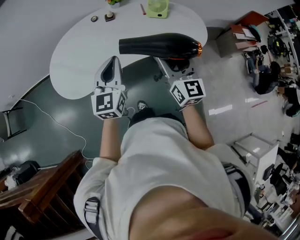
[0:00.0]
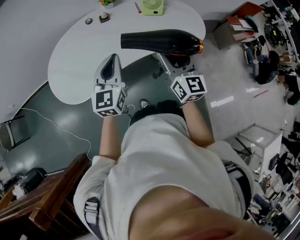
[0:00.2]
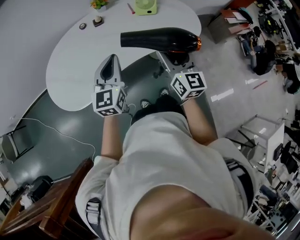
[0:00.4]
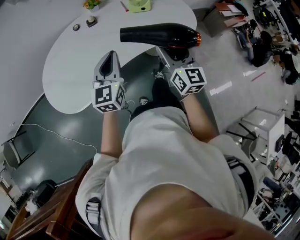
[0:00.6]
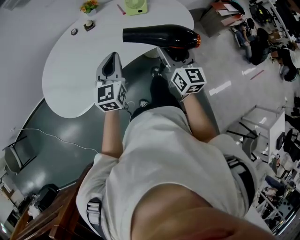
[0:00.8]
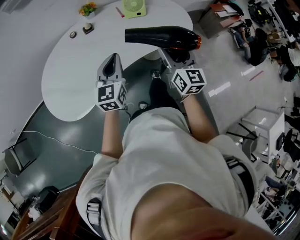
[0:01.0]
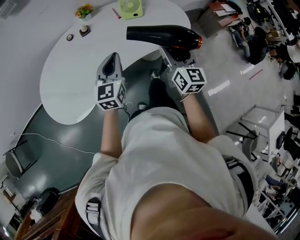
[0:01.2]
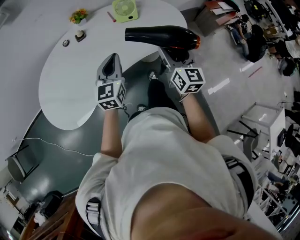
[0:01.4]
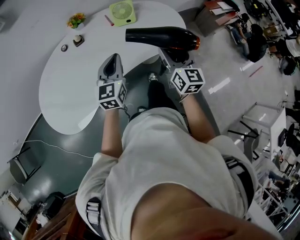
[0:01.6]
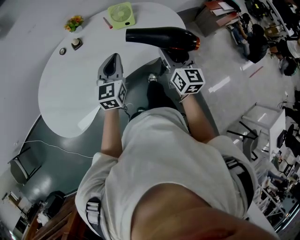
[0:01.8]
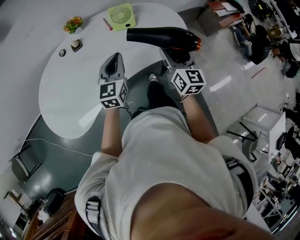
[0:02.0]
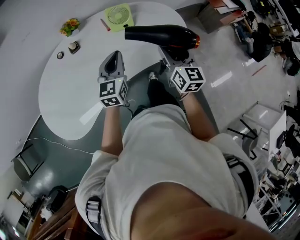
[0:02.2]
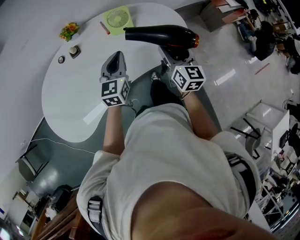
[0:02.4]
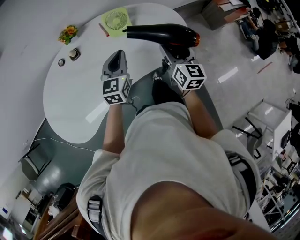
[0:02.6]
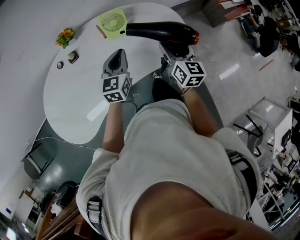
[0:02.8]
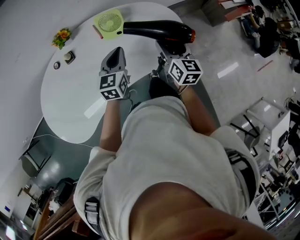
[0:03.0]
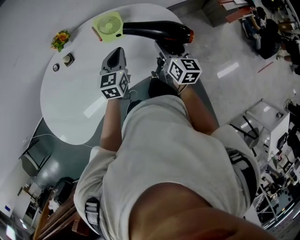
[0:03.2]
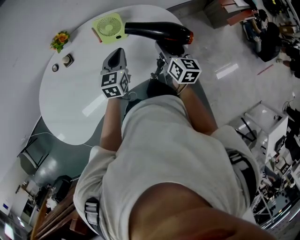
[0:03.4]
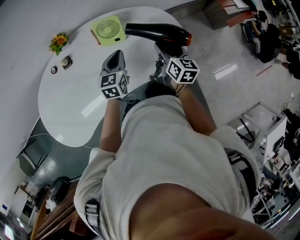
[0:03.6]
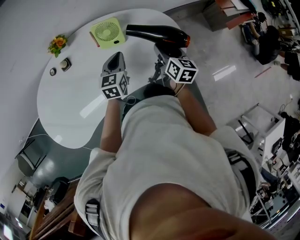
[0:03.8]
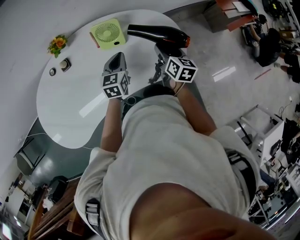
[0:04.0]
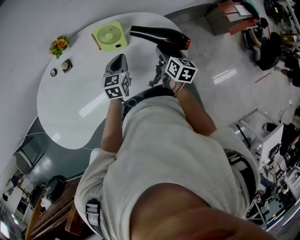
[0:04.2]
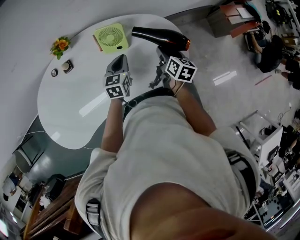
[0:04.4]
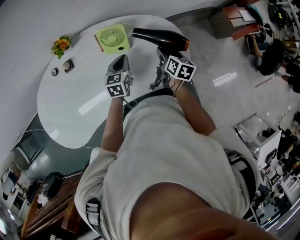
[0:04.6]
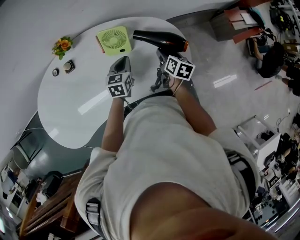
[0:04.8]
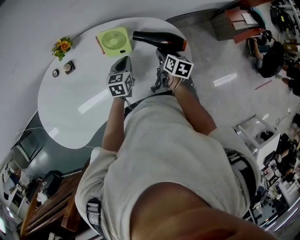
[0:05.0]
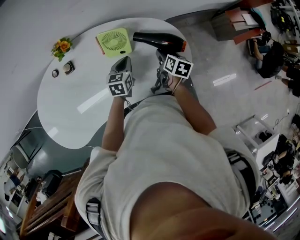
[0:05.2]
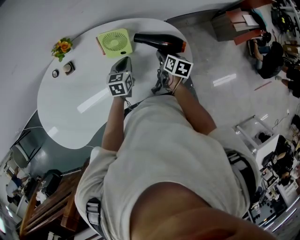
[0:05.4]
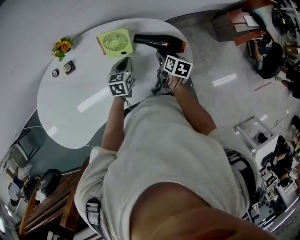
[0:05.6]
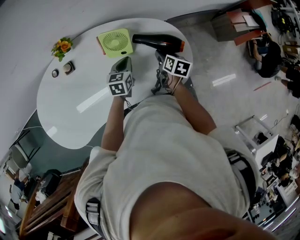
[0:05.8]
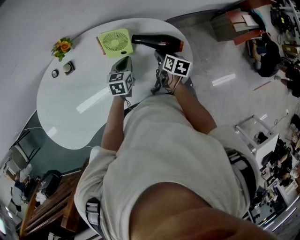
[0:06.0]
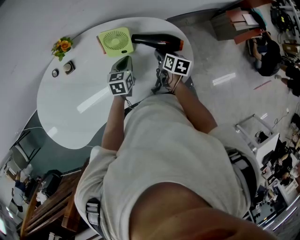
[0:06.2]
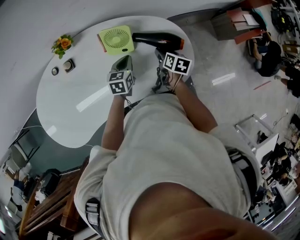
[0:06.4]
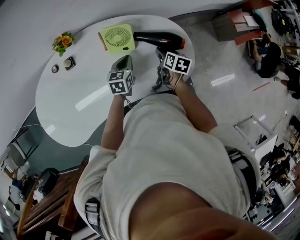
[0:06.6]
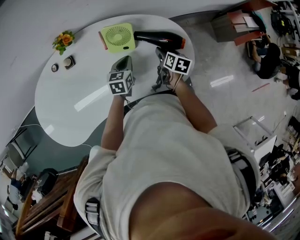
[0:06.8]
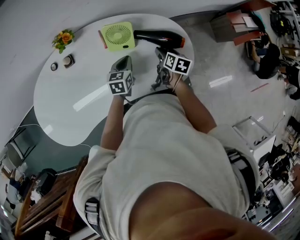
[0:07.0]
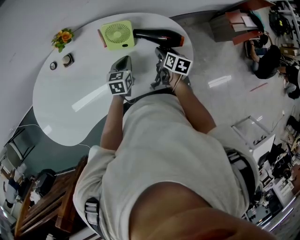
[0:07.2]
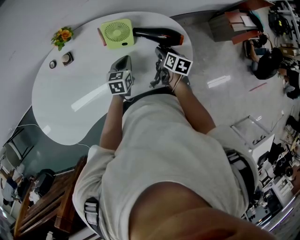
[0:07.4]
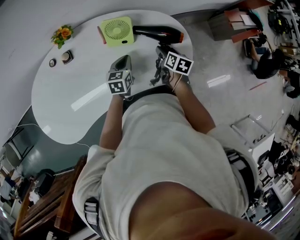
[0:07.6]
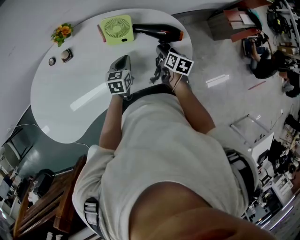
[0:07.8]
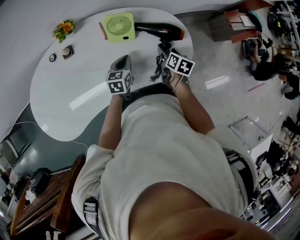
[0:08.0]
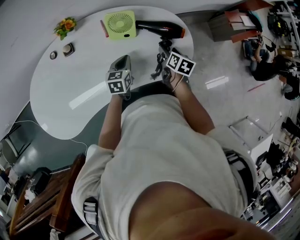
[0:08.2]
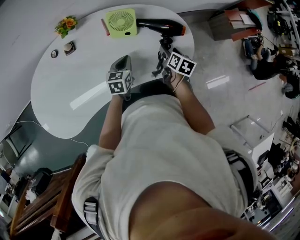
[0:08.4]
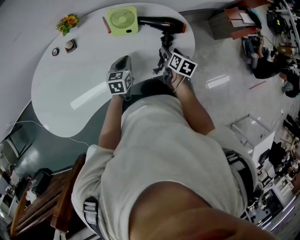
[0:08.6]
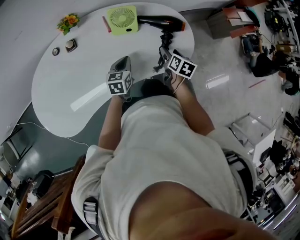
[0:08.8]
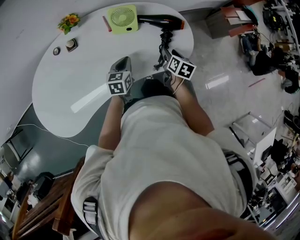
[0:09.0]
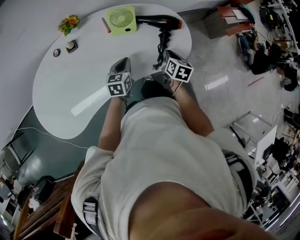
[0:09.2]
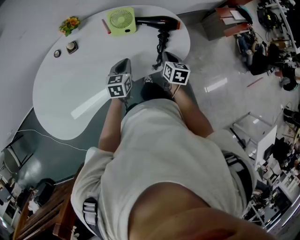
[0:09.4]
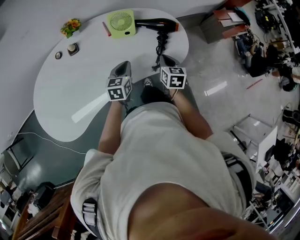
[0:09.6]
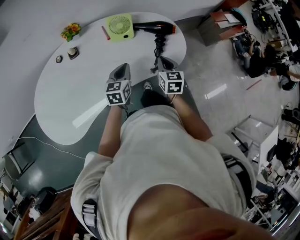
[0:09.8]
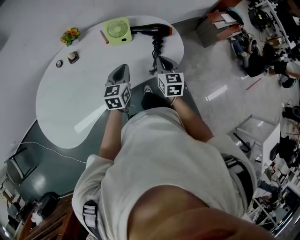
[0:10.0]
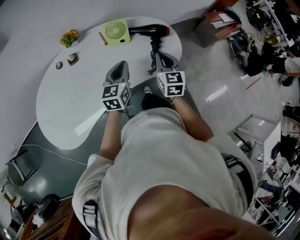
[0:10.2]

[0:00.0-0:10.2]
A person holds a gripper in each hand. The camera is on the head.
0:00.0 to 0:01.4: The left gripper is displaced forward, downward and to the right by some 15 cm, while the right gripper travels to the right, forward and downward by some 15 cm, and changes its angle by approximately 20 degrees.
0:01.4 to 0:03.0: The left gripper is displaced forward and to the right by about 25 cm; the right gripper moves forward, roughly 20 cm.
0:03.0 to 0:04.4: The grippers both shift downward and forward by about 15 cm. The right gripper rotates some 20 degrees.
0:04.4 to 0:05.8: The right gripper is displaced downward by about 5 cm. The left gripper moves roughly 5 cm.
0:05.8 to 0:07.2: There are only small adjustments of the grippers.
0:07.2 to 0:08.8: Both grippers move backward, about 10 cm.
0:08.8 to 0:10.2: The left gripper shifts about 15 cm upward; the right gripper moves upward and backward, roughly 20 cm, turns by approximately 40 degrees, and closes its fingers.

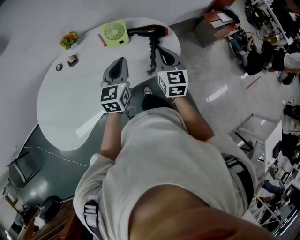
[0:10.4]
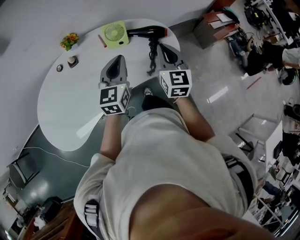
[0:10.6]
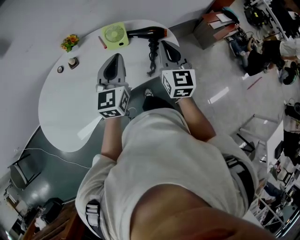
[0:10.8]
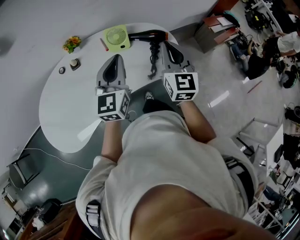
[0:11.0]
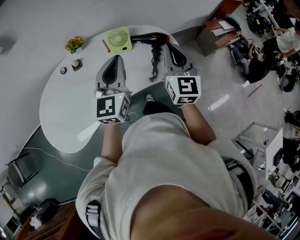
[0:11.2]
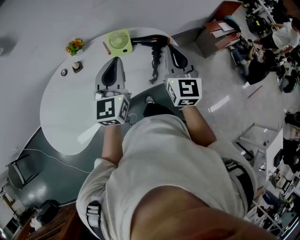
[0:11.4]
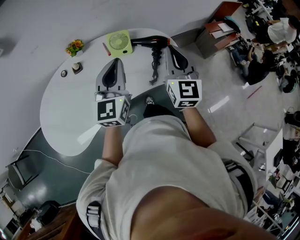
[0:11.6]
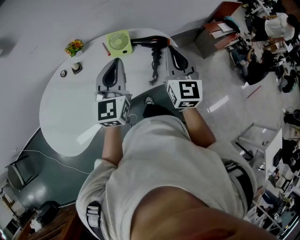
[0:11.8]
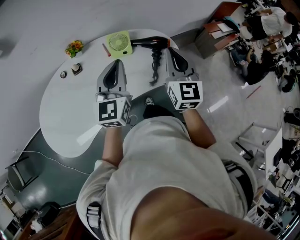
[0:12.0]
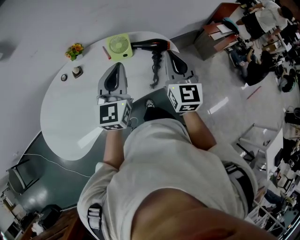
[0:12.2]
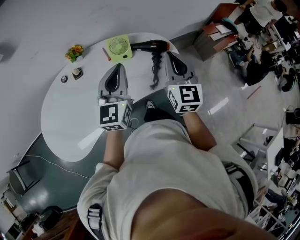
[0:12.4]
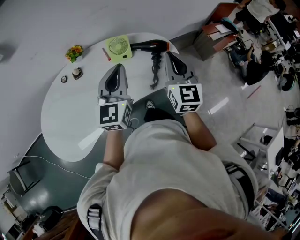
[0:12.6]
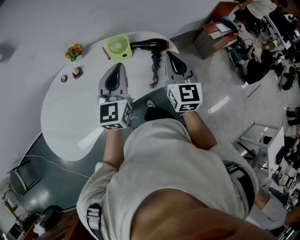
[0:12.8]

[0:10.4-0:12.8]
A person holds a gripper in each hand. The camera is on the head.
0:10.4 to 0:11.6: The grippers both shift upward by some 10 cm.
0:11.6 to 0:12.8: The grippers move only a little.

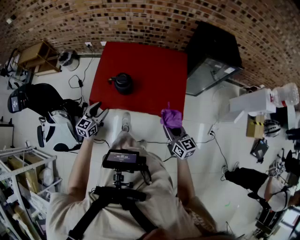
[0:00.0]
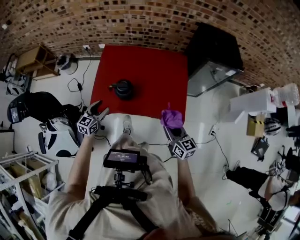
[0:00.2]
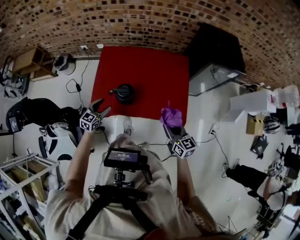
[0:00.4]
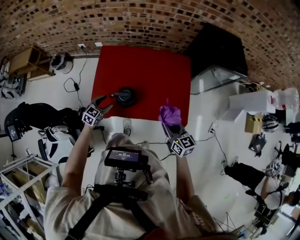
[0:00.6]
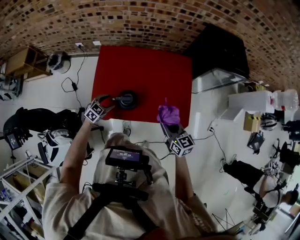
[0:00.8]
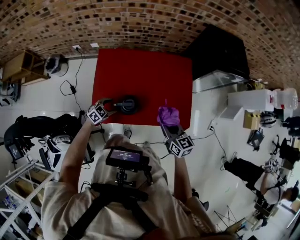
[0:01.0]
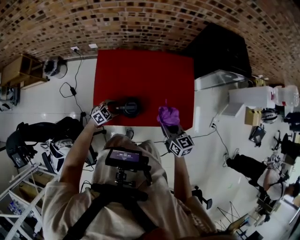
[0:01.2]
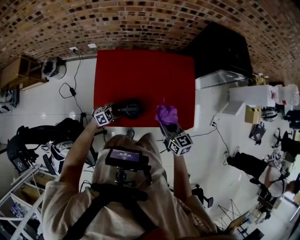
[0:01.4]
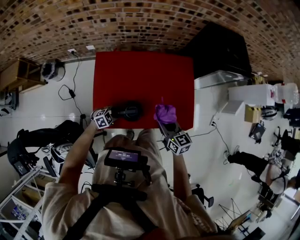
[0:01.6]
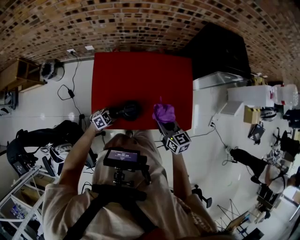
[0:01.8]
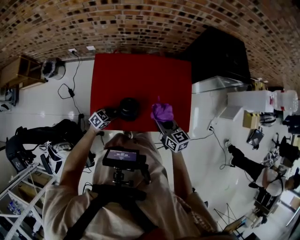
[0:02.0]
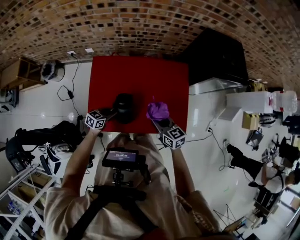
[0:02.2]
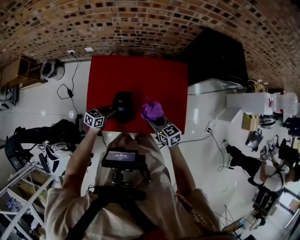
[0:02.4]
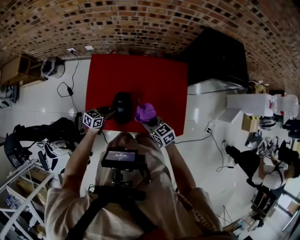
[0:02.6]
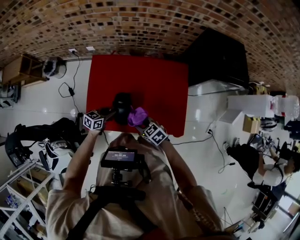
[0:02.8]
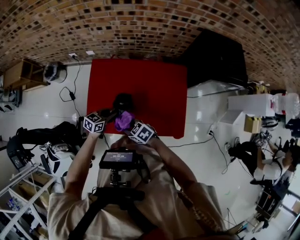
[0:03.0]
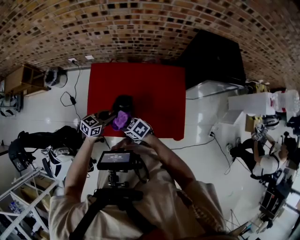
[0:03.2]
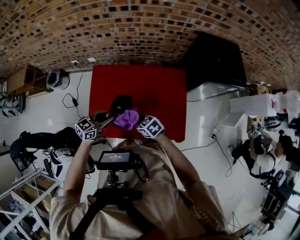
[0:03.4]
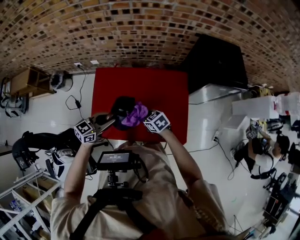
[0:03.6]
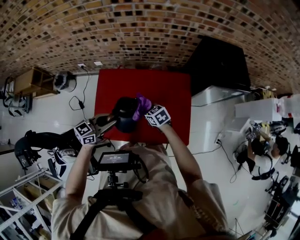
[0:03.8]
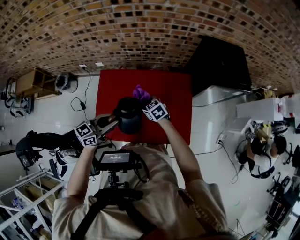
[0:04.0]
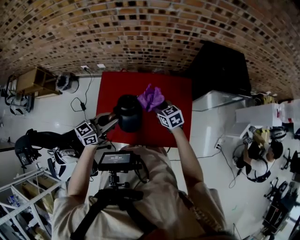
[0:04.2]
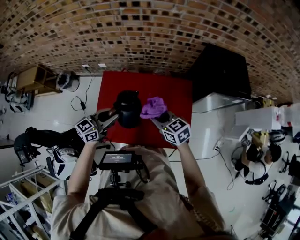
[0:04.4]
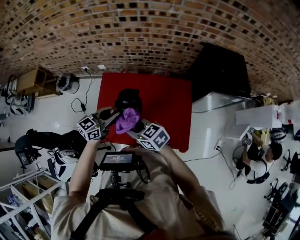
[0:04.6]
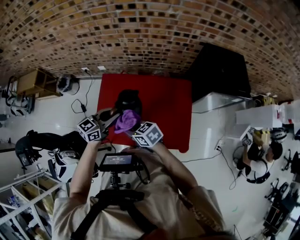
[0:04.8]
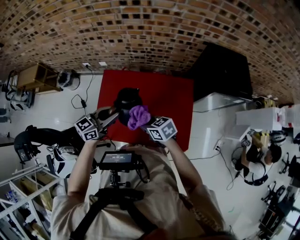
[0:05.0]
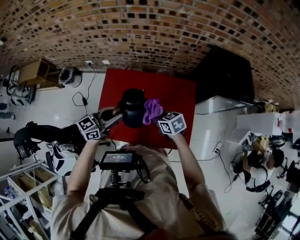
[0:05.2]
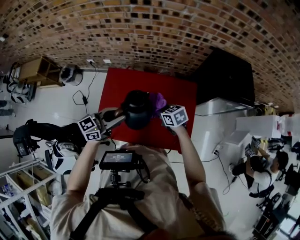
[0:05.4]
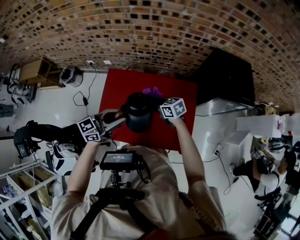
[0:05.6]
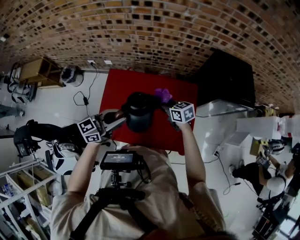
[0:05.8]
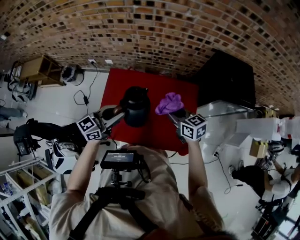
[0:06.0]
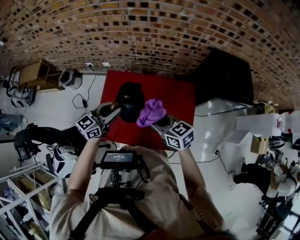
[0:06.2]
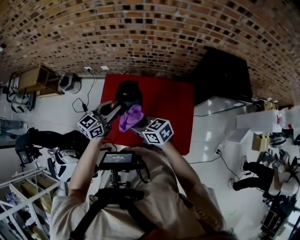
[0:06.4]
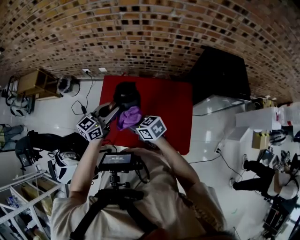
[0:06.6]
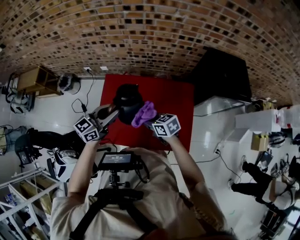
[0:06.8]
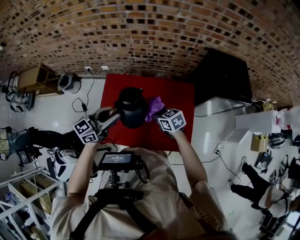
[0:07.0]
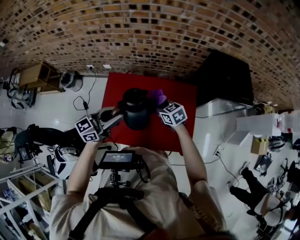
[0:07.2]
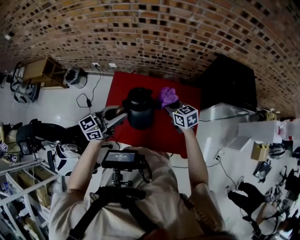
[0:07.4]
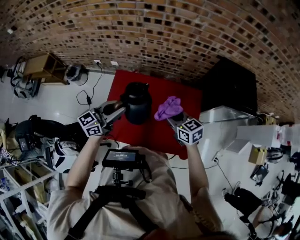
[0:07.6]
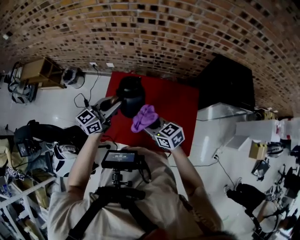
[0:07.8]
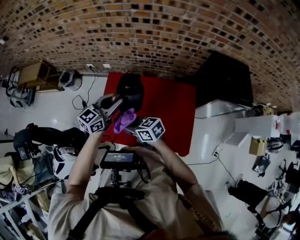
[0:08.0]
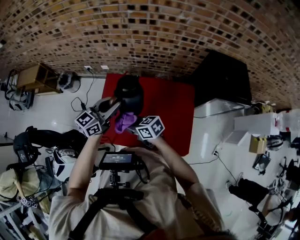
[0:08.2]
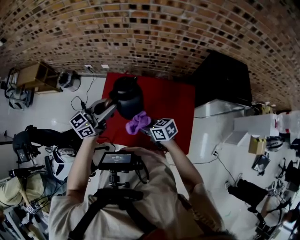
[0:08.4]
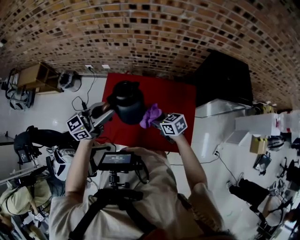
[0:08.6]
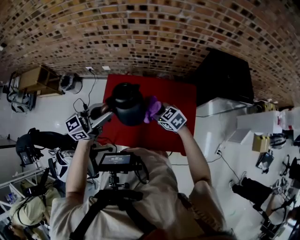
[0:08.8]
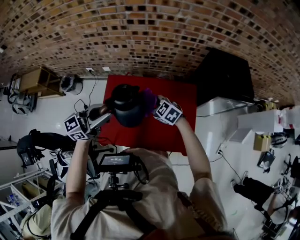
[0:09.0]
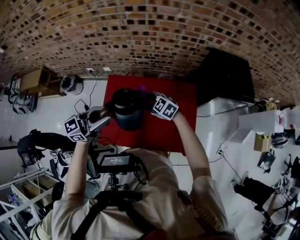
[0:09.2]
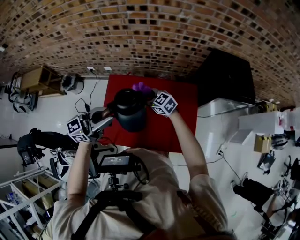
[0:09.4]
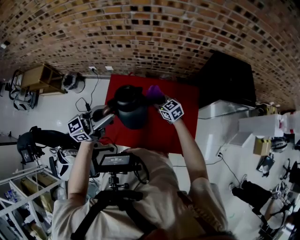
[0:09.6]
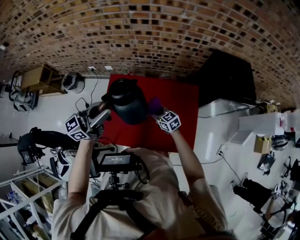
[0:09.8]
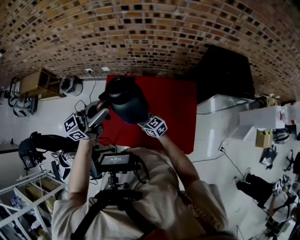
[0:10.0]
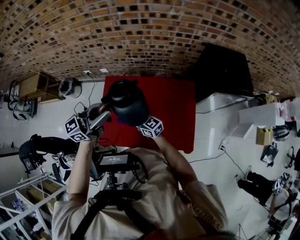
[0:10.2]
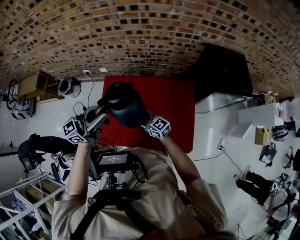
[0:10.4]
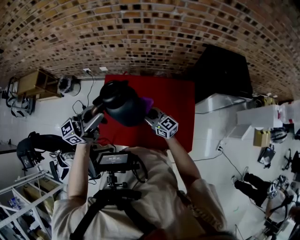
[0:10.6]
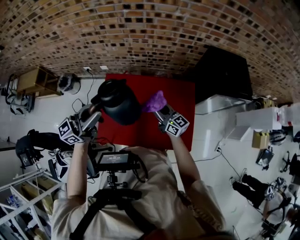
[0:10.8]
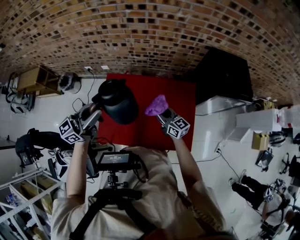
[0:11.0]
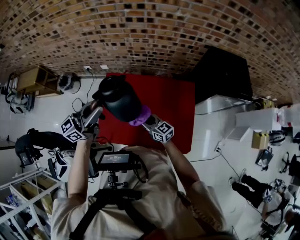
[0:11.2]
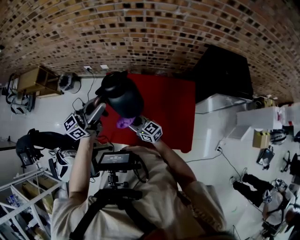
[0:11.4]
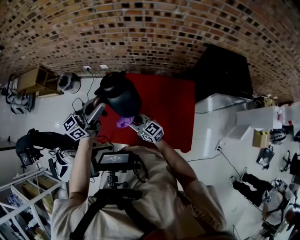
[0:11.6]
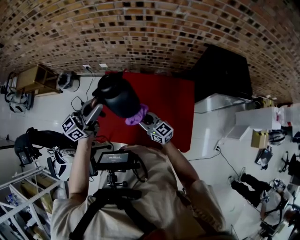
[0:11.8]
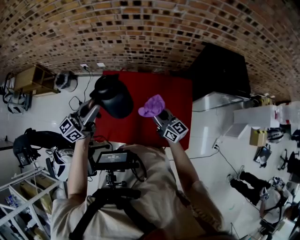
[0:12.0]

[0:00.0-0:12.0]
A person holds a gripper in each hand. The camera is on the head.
0:00.0 to 0:01.6: The left gripper heads downward, covering about 20 cm, rotates approximately 60 degrees, and closes up; the right gripper changes place by about 25 cm.
0:01.6 to 0:03.0: The left gripper is displaced upward by approximately 10 cm, and turns by about 50 degrees, while the right gripper shifts by some 15 cm, and swivels some 50 degrees.
0:03.0 to 0:04.4: The left gripper shifts approximately 20 cm upward, and turns by about 20 degrees. Meanwhile the right gripper ends up some 25 cm from where it was, and changes its angle by approximately 30 degrees.
0:04.4 to 0:06.0: The right gripper goes downward and returns, about 10 cm each way.
0:06.0 to 0:07.6: The right gripper goes to the left and returns, approximately 15 cm each way.
0:07.6 to 0:09.0: The right gripper shifts some 5 cm downward, and turns by about 30 degrees. The left gripper moves about 5 cm.
0:09.0 to 0:10.4: The right gripper moves some 10 cm downward and comes back, and points its fingers about 40 degrees further upward.
0:10.4 to 0:12.0: The right gripper goes left and right, some 15 cm each way, reversing 2 times, while the left gripper changes place by roughly 5 cm.
